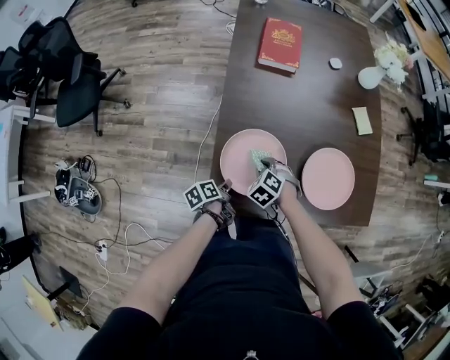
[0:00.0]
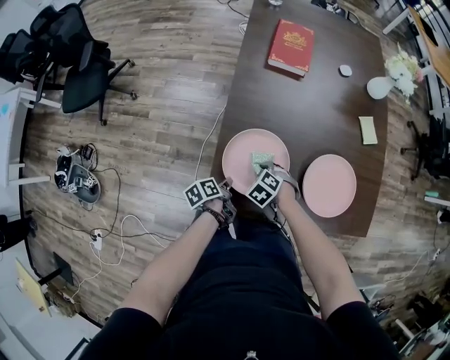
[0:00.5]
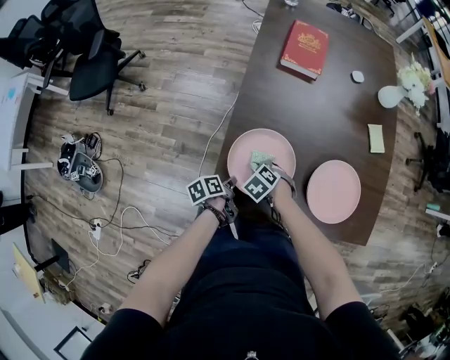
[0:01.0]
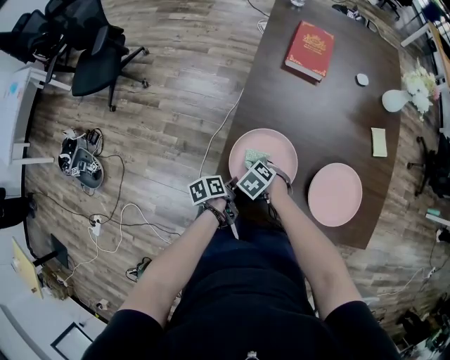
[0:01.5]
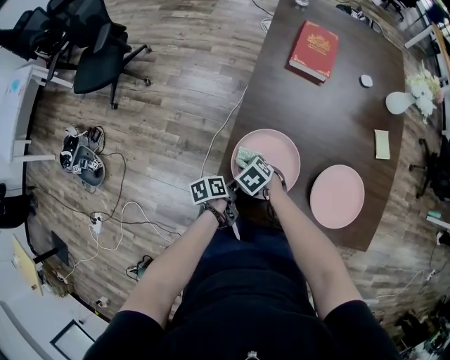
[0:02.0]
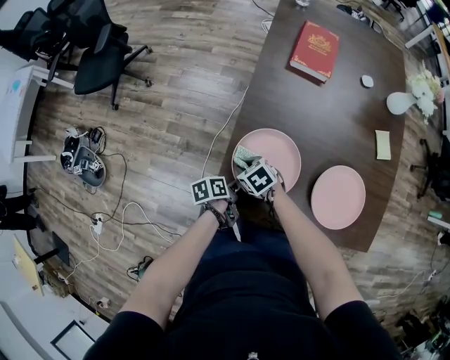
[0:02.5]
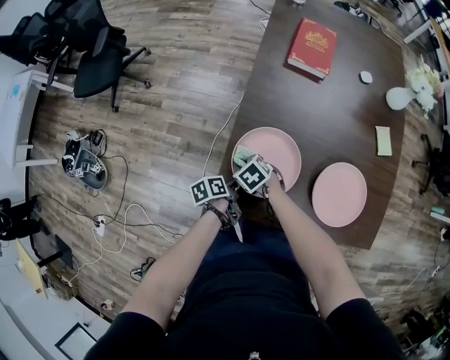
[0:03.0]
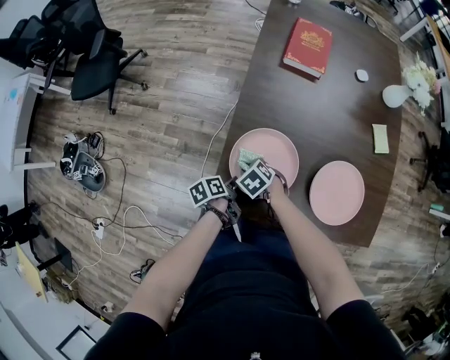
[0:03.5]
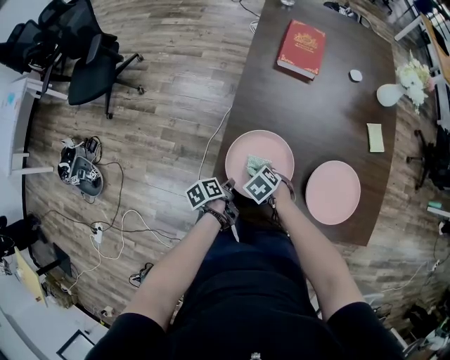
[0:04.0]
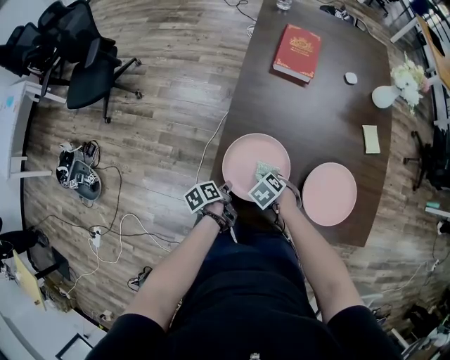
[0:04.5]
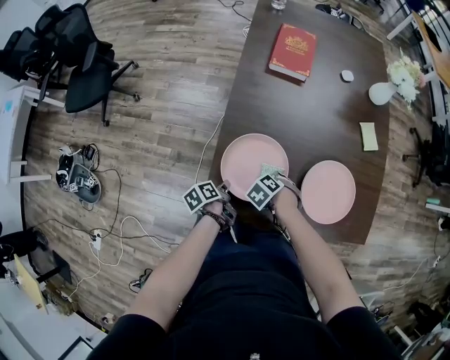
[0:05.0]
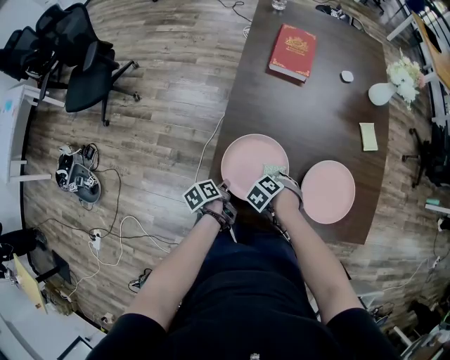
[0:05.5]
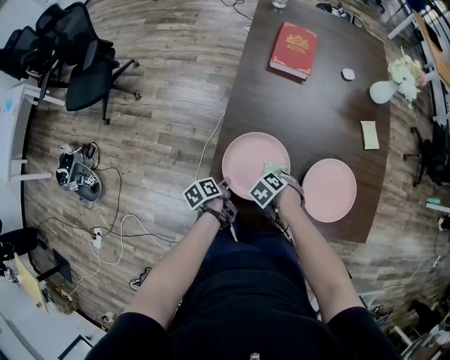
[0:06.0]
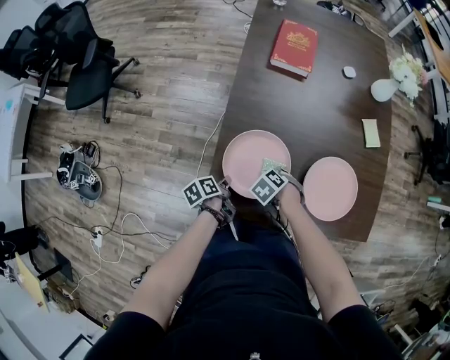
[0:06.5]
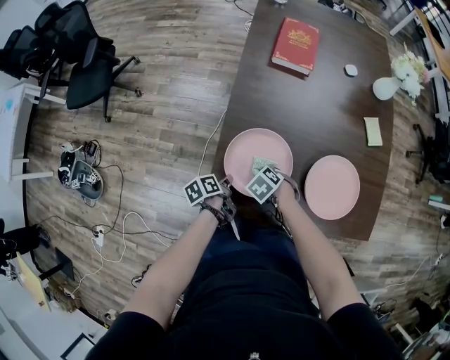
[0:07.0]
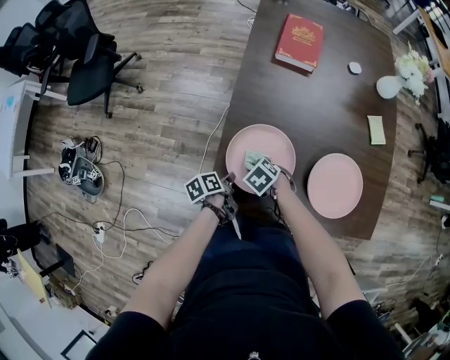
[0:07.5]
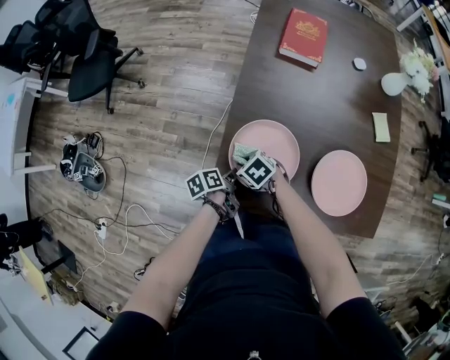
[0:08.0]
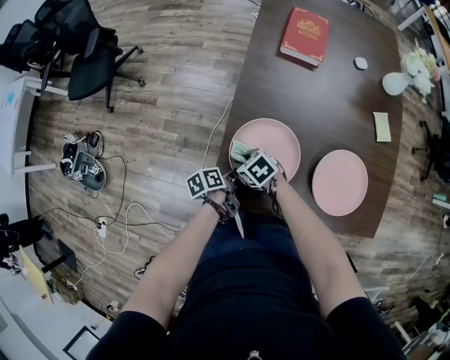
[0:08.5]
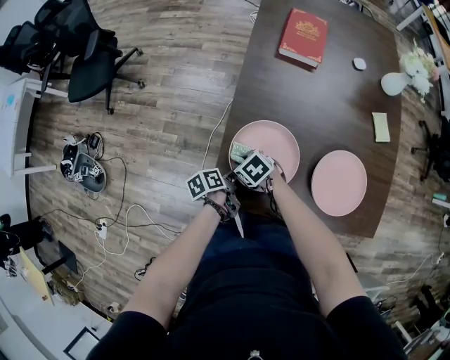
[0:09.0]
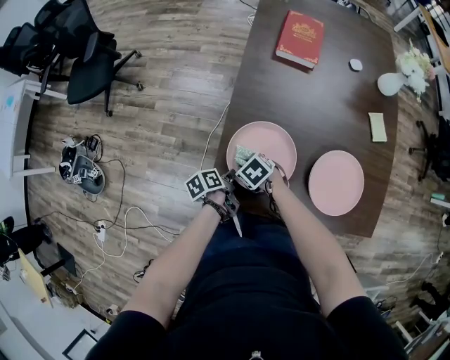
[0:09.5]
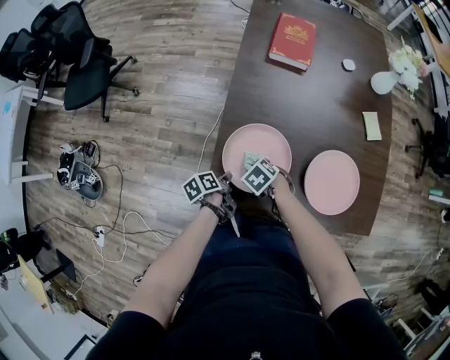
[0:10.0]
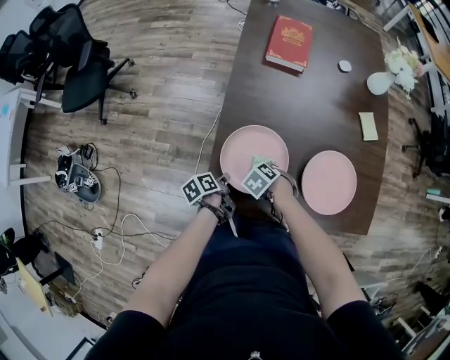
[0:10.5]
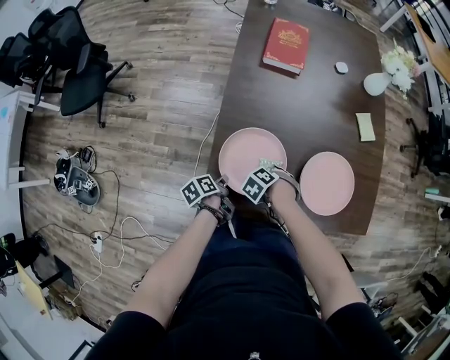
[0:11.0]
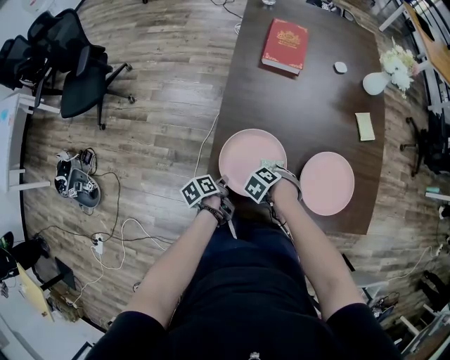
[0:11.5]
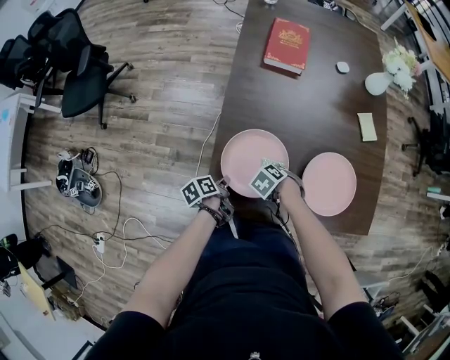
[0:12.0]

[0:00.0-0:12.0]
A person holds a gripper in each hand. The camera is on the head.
0:00.0 to 0:02.0: The right gripper shifts by about 10 cm, and changes its angle by about 20 degrees.
0:02.0 to 0:04.0: The right gripper ends up approximately 5 cm from where it was.
0:04.0 to 0:06.0: The right gripper moves approximately 10 cm.
0:06.0 to 0:08.0: The right gripper ends up roughly 15 cm from where it was, and rotates approximately 30 degrees.
0:08.0 to 0:10.0: The right gripper moves roughly 5 cm.
0:10.0 to 0:12.0: The right gripper ends up about 5 cm from where it was.

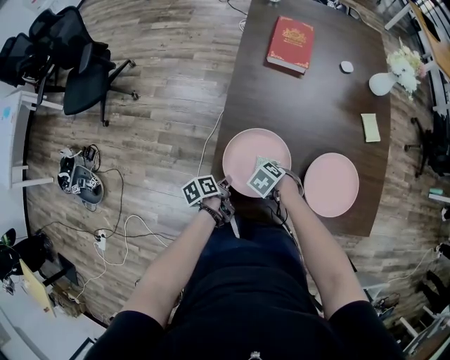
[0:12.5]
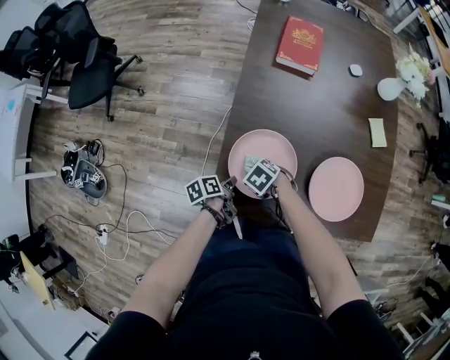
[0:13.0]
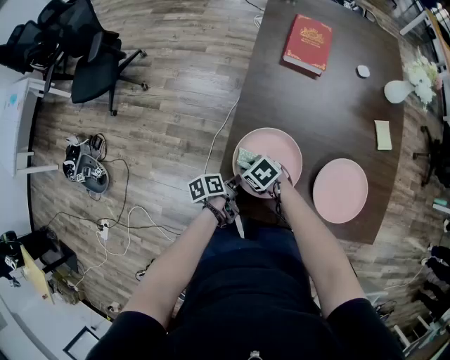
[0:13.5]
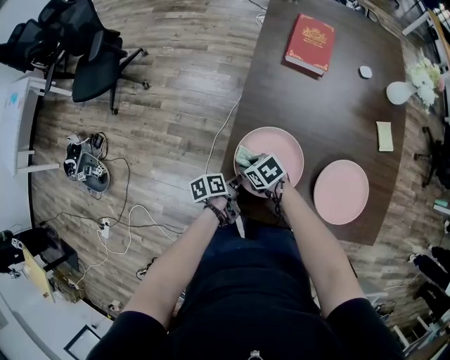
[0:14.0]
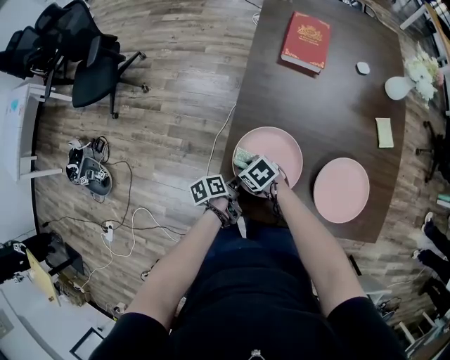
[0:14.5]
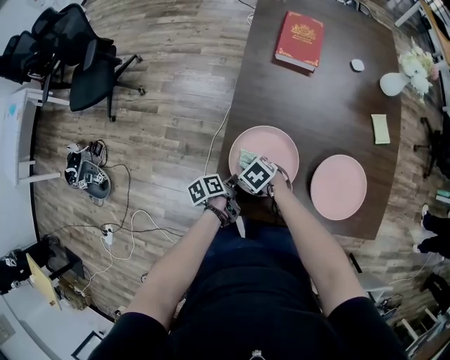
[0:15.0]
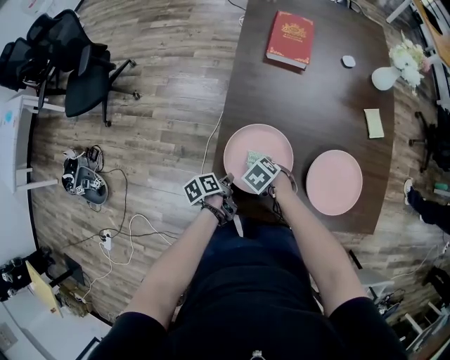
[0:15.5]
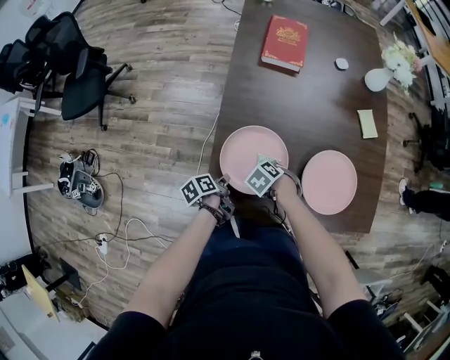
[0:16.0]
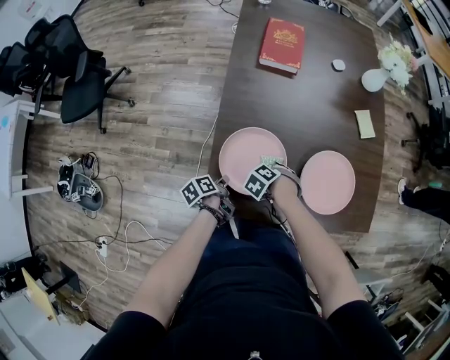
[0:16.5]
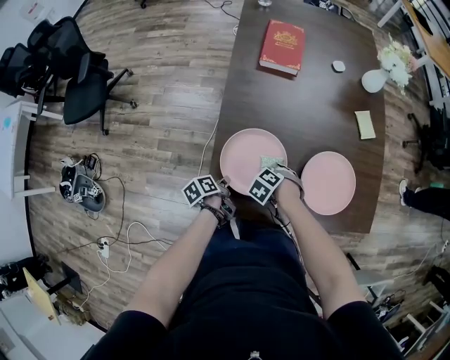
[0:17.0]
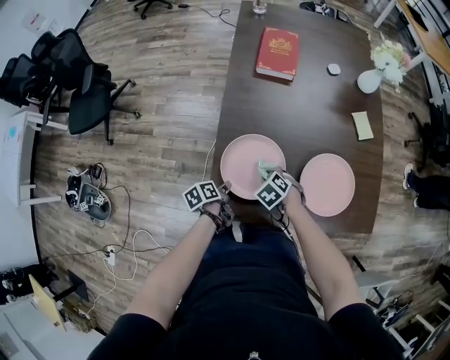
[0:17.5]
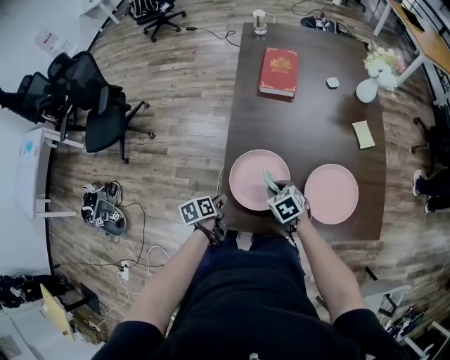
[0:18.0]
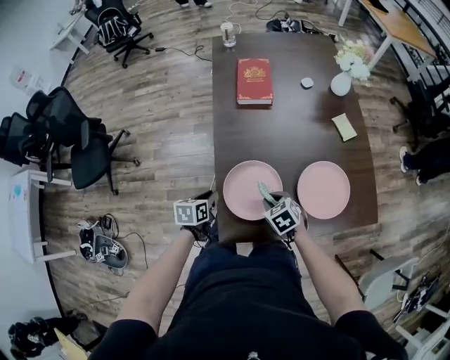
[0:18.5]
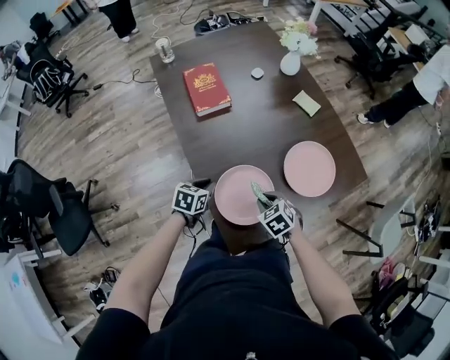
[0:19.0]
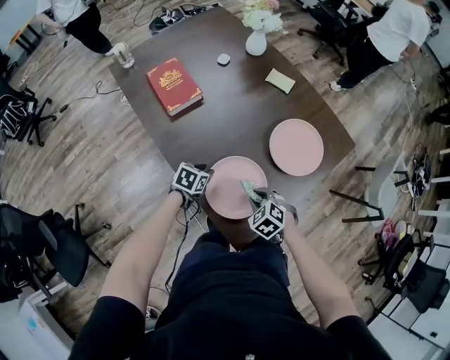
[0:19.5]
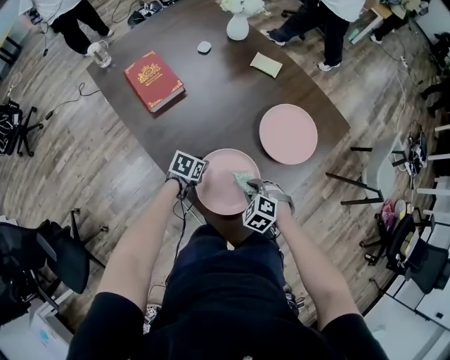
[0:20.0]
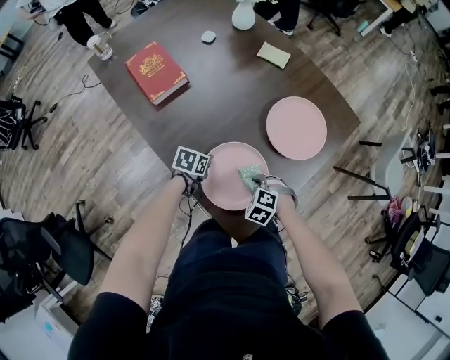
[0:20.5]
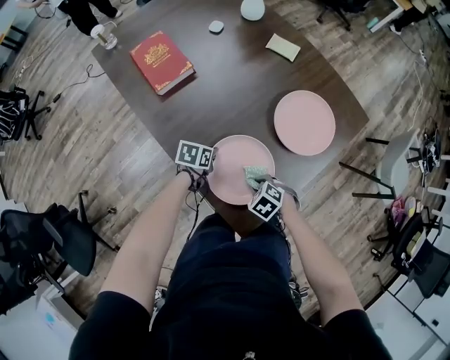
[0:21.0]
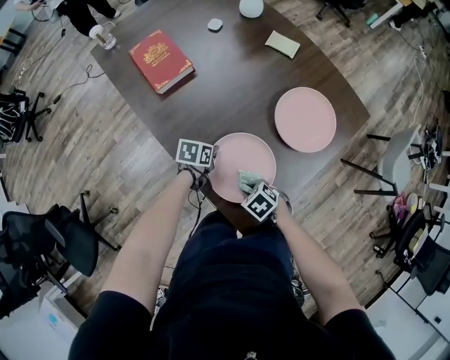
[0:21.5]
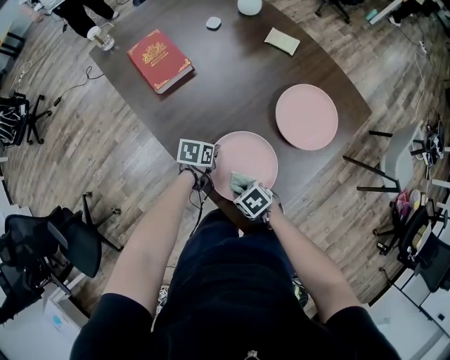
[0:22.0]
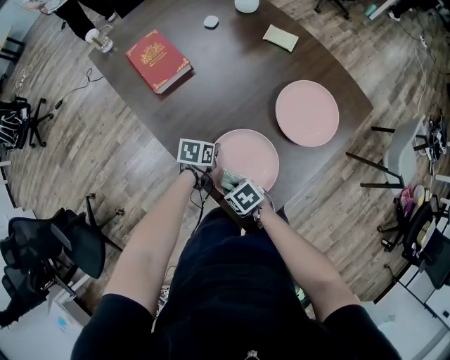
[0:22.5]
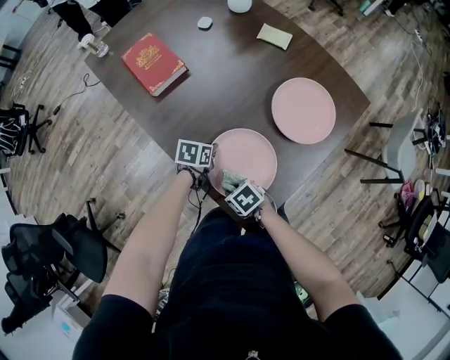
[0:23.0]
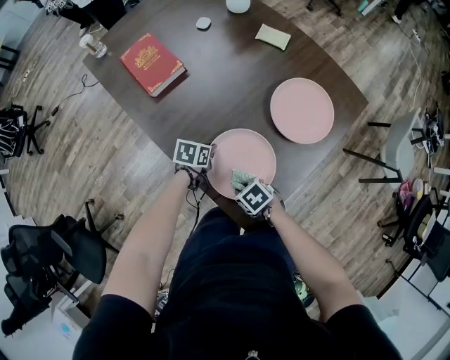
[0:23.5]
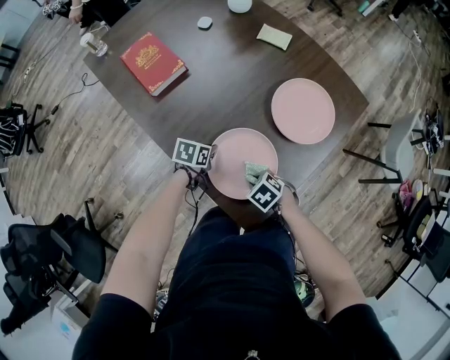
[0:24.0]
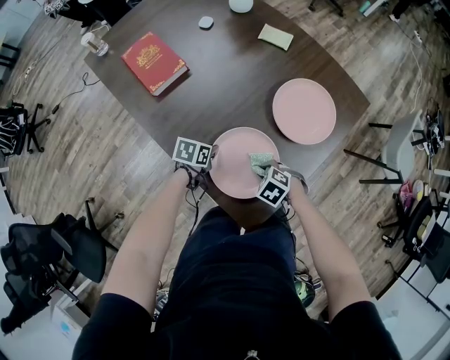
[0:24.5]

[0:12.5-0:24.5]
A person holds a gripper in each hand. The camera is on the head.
0:12.5 to 0:14.5: The right gripper shifts by about 10 cm, and turns by roughly 20 degrees.
0:14.5 to 0:16.5: The right gripper ends up roughly 15 cm from where it was, and tips its fingers downward by some 30 degrees.
0:16.5 to 0:18.5: The right gripper travels upward by some 10 cm, and angles its fingers upward, by approximately 30 degrees.
0:18.5 to 0:20.5: The right gripper shifts approximately 10 cm downward, and swivels about 20 degrees.
0:20.5 to 0:22.5: The right gripper changes place by about 15 cm, and rolls clockwise, seen from behind, by about 40 degrees.
0:22.5 to 0:24.5: The right gripper moves about 10 cm, and turns by about 30 degrees.

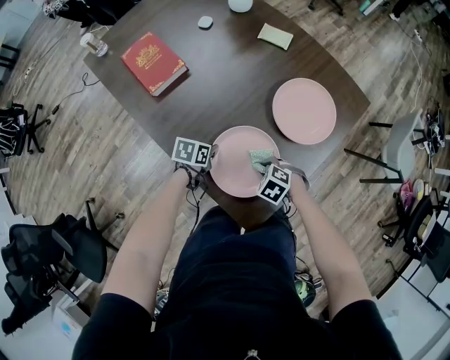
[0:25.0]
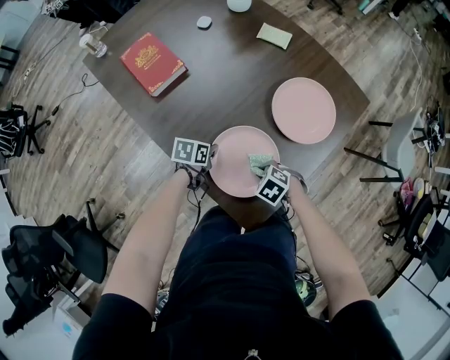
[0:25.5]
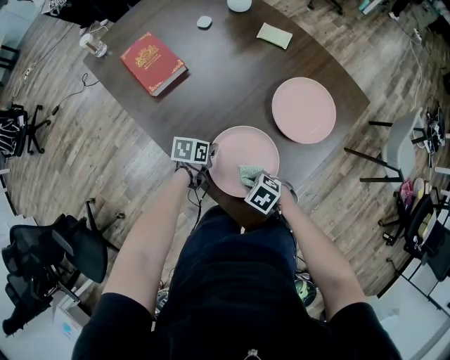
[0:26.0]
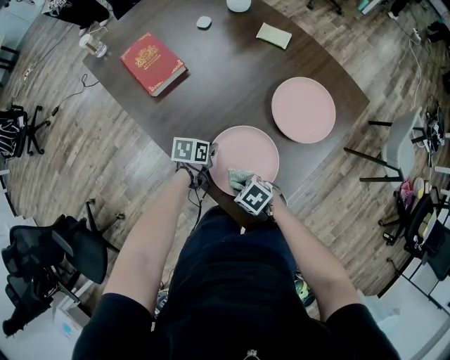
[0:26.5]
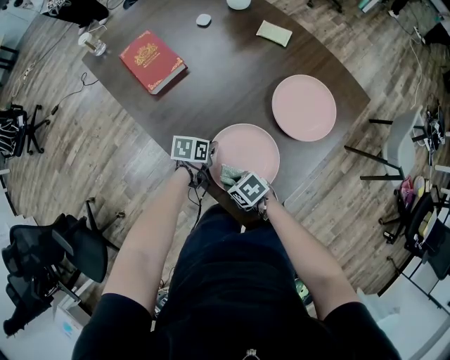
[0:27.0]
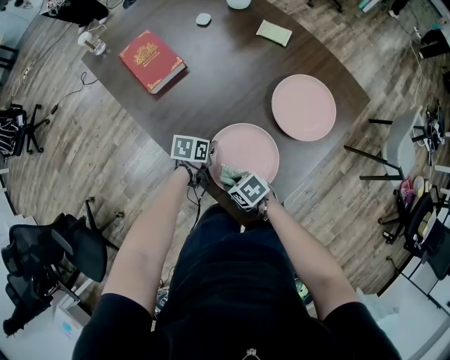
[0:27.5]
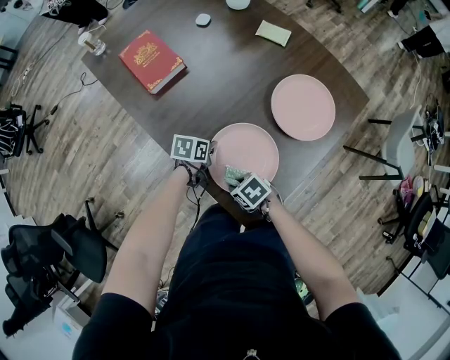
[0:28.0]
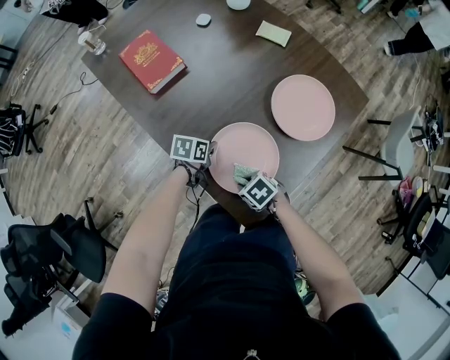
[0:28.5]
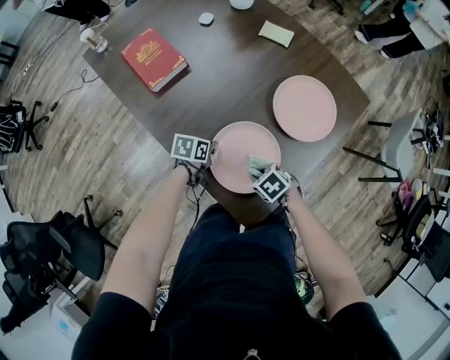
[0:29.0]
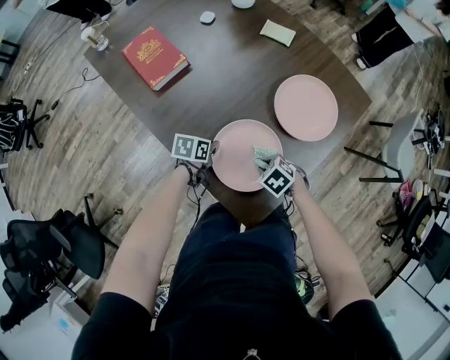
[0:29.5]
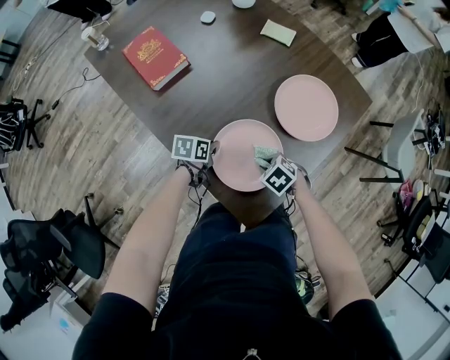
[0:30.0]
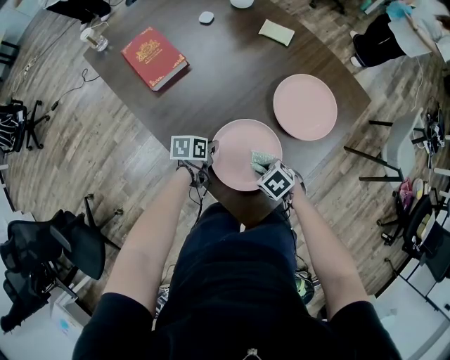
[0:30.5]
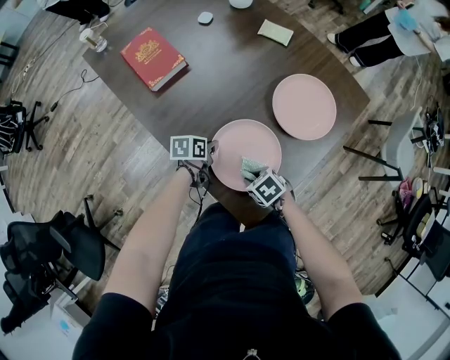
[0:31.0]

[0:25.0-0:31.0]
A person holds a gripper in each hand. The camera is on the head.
0:25.0 to 0:27.0: The right gripper changes place by roughly 10 cm, and rotates approximately 30 degrees.
0:27.0 to 0:29.0: The right gripper shifts by approximately 10 cm.
